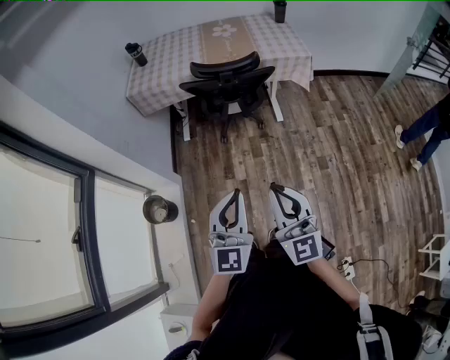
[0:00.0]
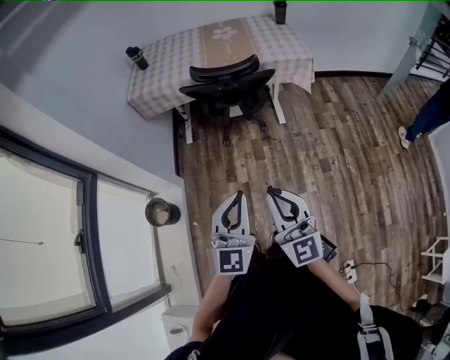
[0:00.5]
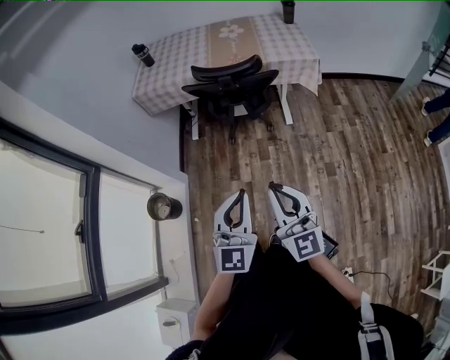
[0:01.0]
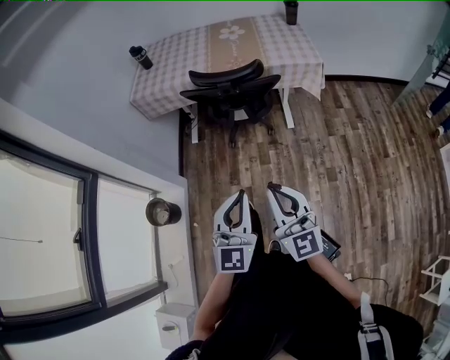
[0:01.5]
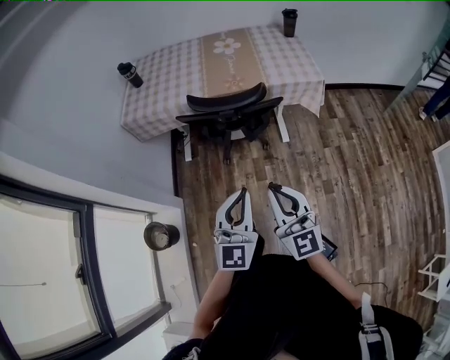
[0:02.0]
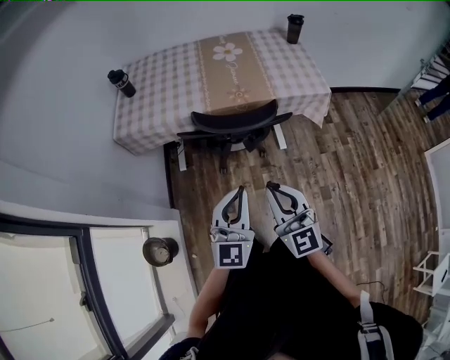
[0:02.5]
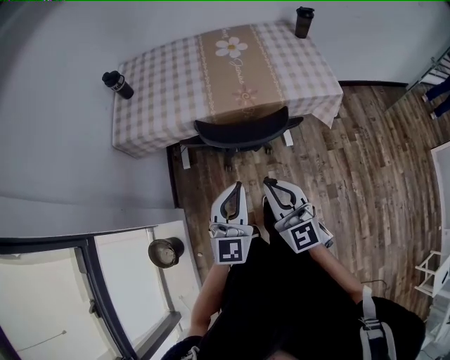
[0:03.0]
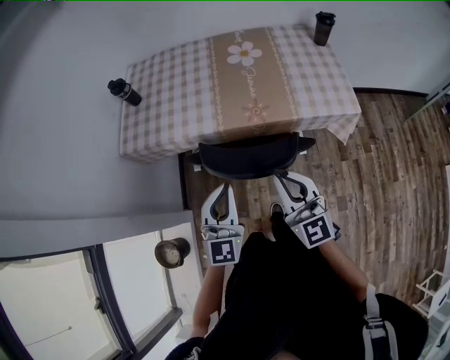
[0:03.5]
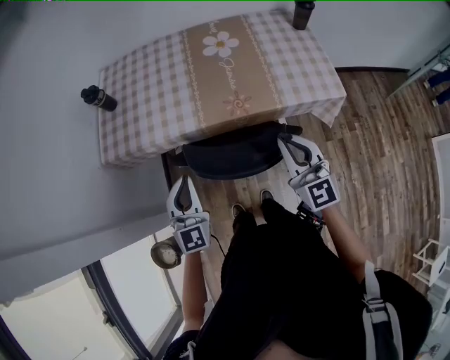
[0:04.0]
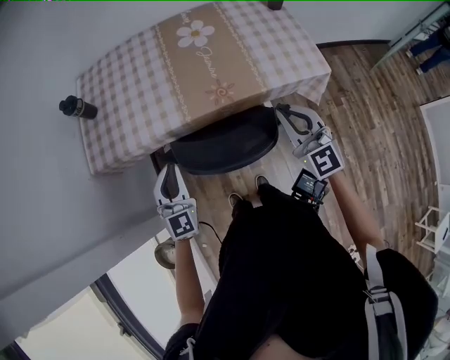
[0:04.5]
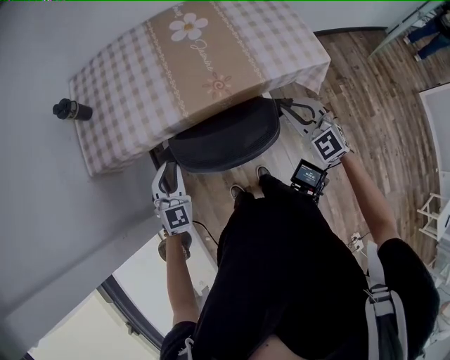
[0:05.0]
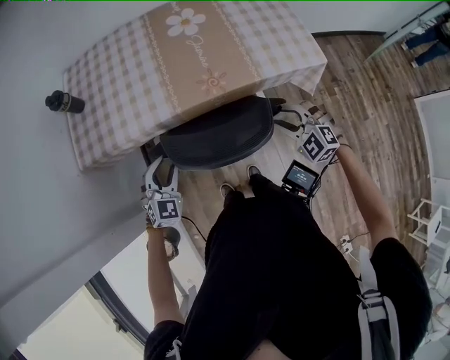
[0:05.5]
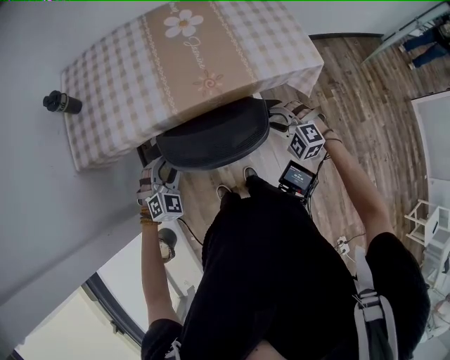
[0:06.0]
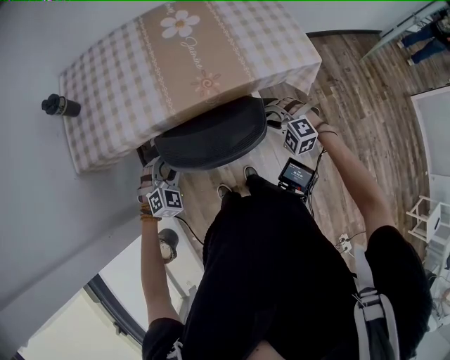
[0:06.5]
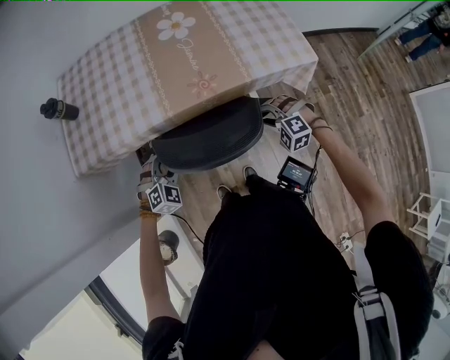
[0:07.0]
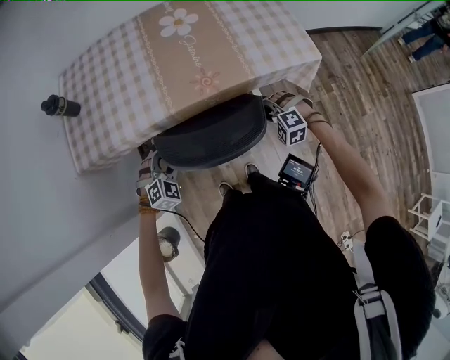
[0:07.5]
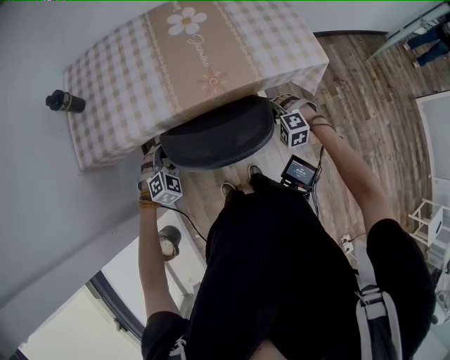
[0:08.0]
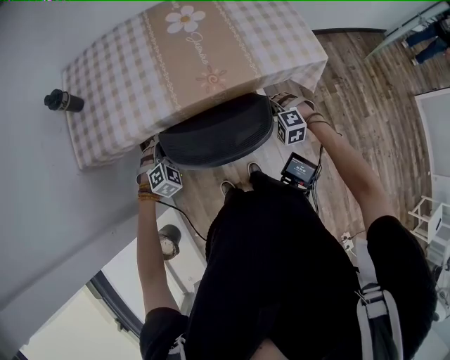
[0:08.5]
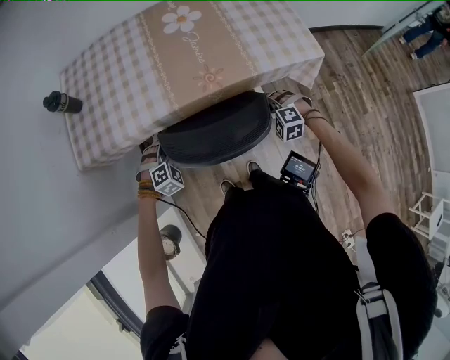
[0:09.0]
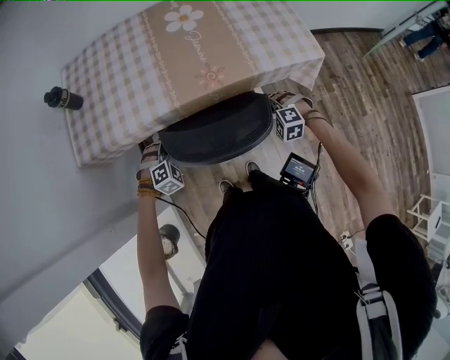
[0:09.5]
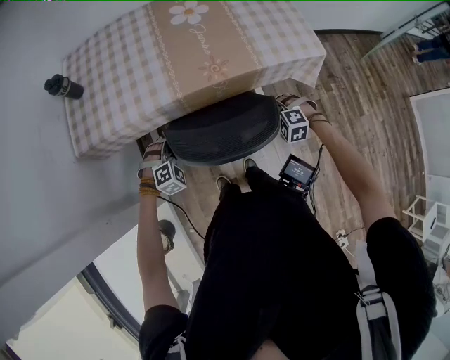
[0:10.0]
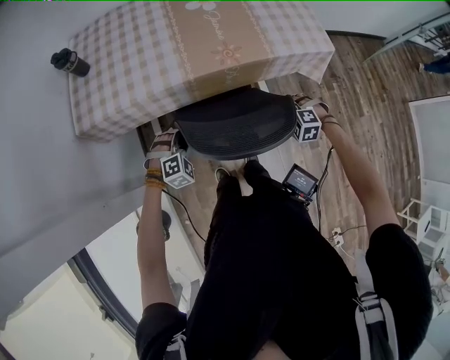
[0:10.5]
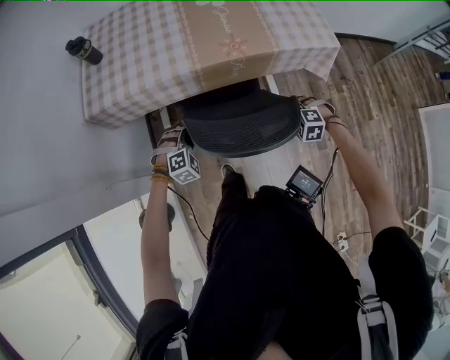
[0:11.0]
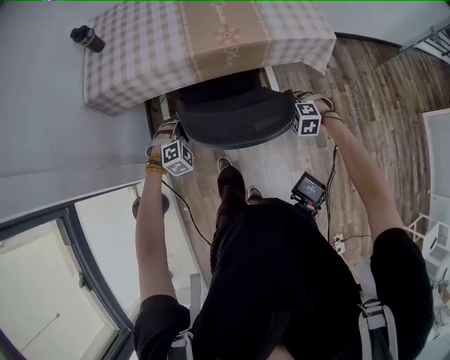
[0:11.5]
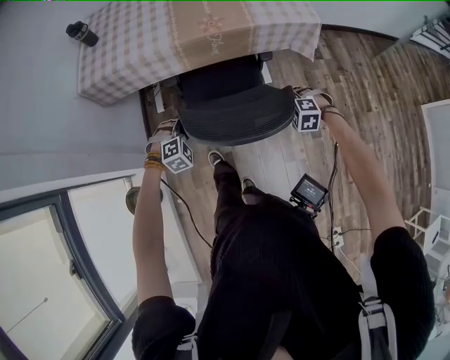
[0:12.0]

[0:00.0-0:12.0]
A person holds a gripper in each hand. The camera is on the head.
0:00.0 to 0:02.0: Both grippers move forward, about 20 cm.
0:02.0 to 0:04.0: Both grippers travel together forward, about 40 cm.
0:04.0 to 0:06.0: Both grippers move downward, about 20 cm. The right gripper angles its fingers downward, by approximately 40 degrees, and opens up. The left gripper angles its fingers downward, by some 30 degrees, and opens its fingers.
0:06.0 to 0:08.0: Both grippers travel together downward, approximately 5 cm.
0:08.0 to 0:10.0: The grippers make only small movements.
0:10.0 to 0:12.0: Both grippers move backward, roughly 20 cm.

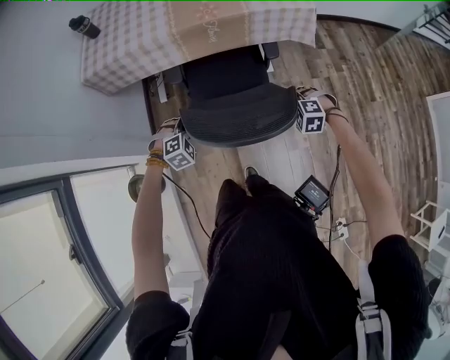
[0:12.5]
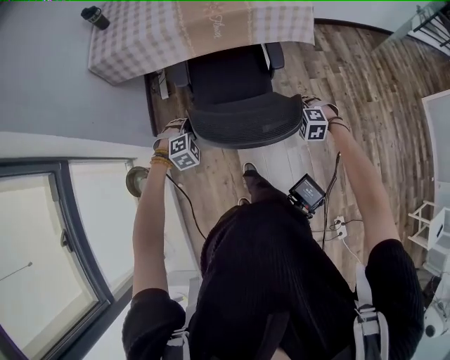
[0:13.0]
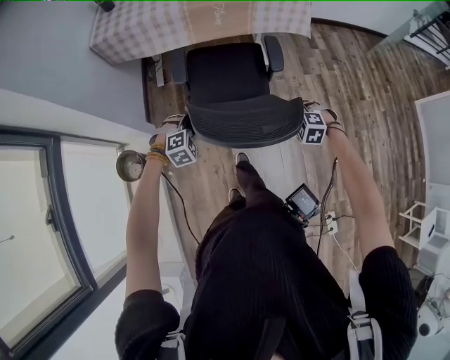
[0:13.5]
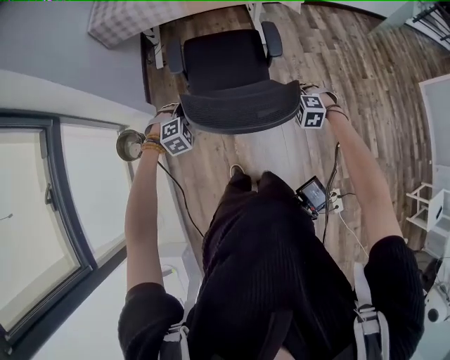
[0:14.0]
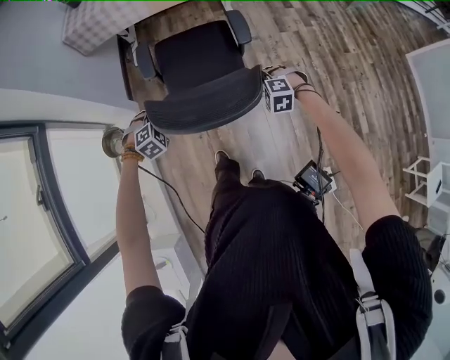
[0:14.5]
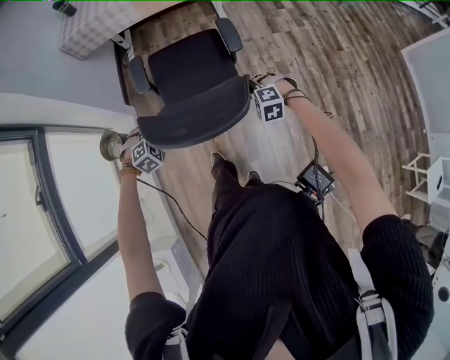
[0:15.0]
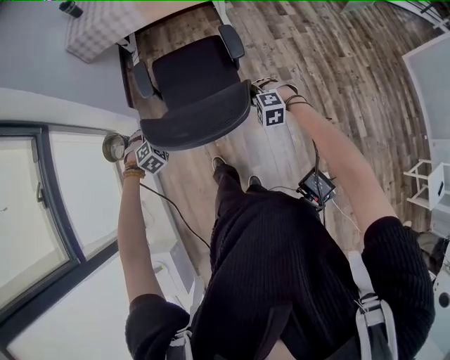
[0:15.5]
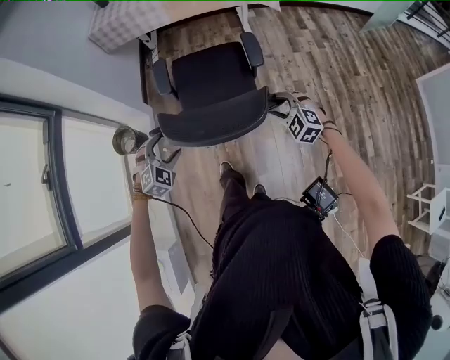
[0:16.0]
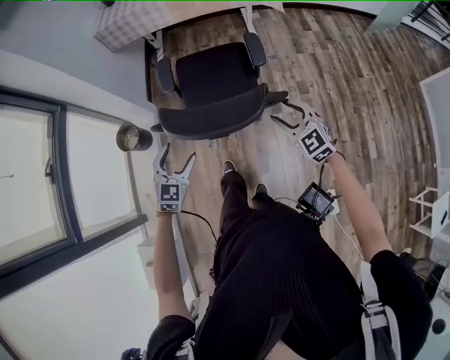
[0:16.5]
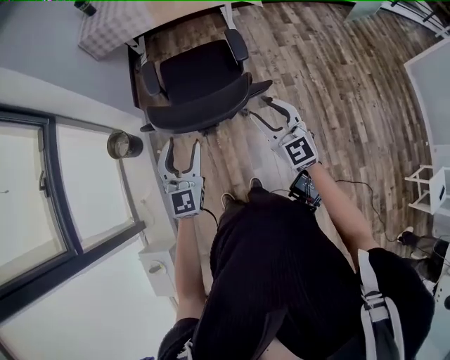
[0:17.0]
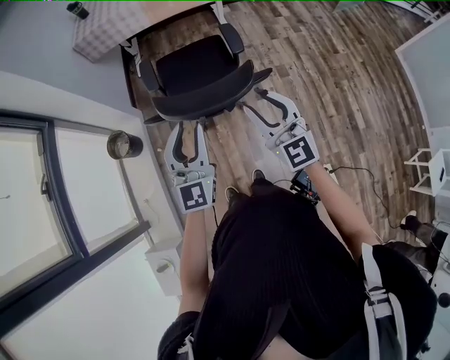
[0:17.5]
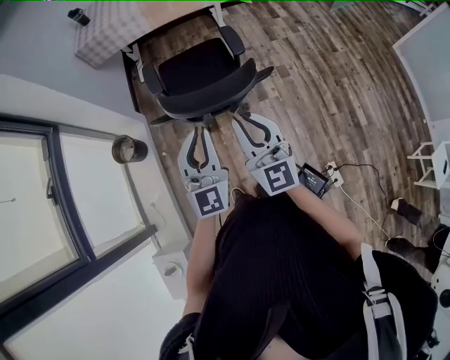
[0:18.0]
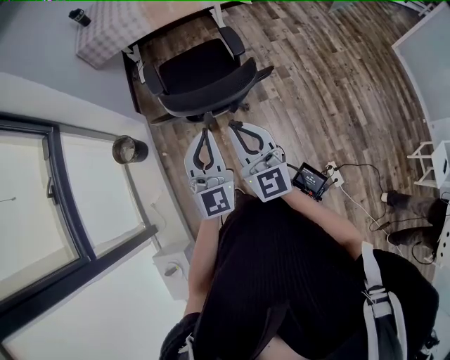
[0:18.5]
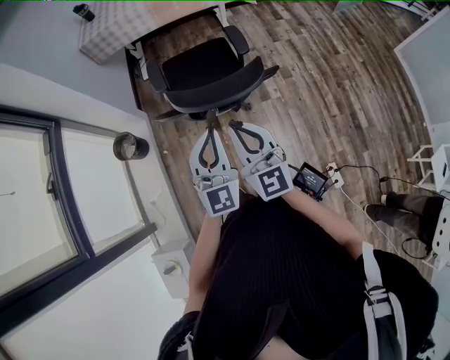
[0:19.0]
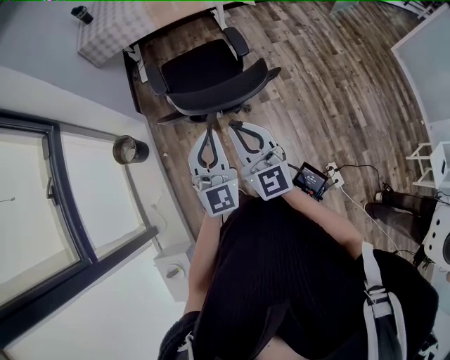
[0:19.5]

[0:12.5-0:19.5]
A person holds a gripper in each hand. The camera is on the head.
0:12.5 to 0:14.5: Both grippers move backward, some 30 cm.
0:14.5 to 0:16.0: Both grippers travel together backward and upward, roughly 10 cm. The right gripper changes its angle by roughly 30 degrees, and opens its fingers. The left gripper rotates roughly 20 degrees, and opens up.
0:16.0 to 0:17.5: The right gripper is displaced upward, backward and to the left by roughly 25 cm, and tips its fingers upward by some 40 degrees. The left gripper shifts some 25 cm upward, to the right and backward, tilts its fingers some 50 degrees upward, and closes up.
0:17.5 to 0:19.5: The left gripper closes up. The right gripper heads to the left, covering about 10 cm, and closes its fingers.

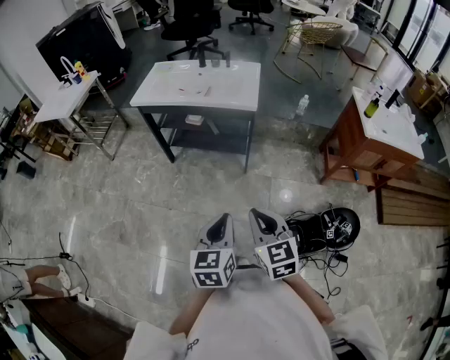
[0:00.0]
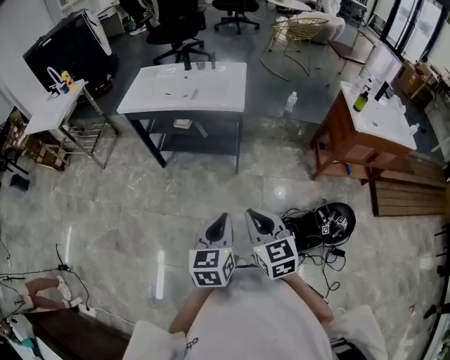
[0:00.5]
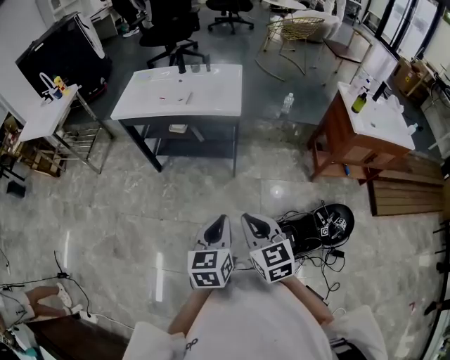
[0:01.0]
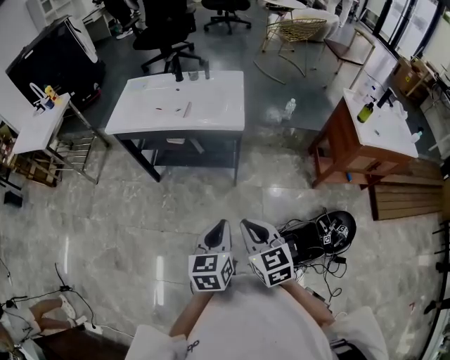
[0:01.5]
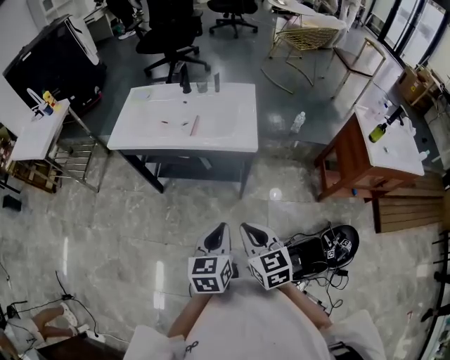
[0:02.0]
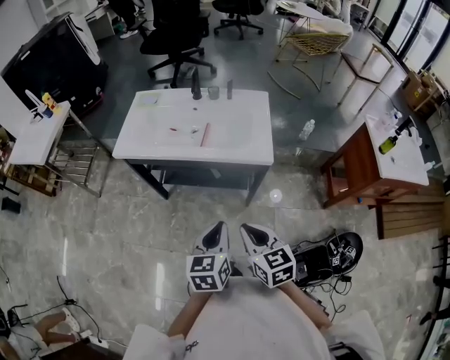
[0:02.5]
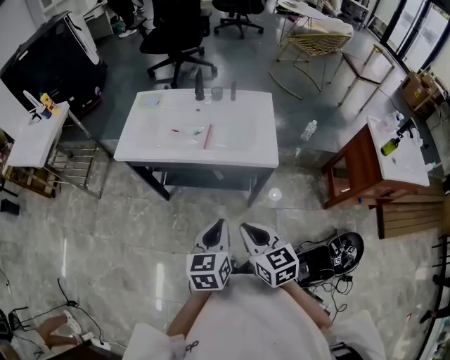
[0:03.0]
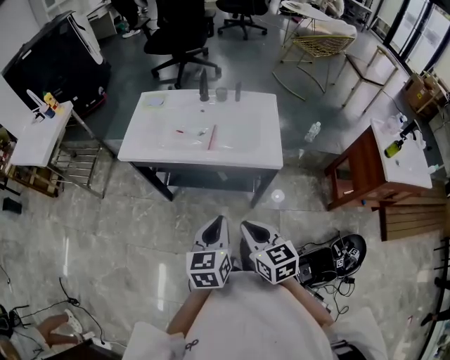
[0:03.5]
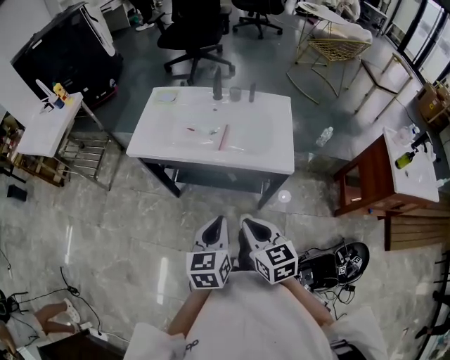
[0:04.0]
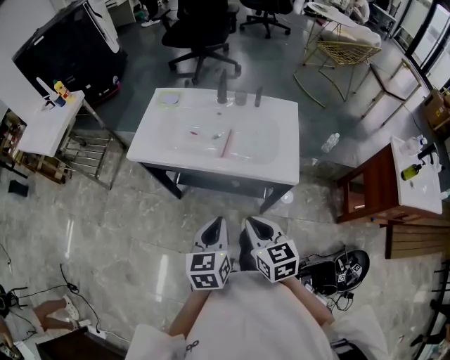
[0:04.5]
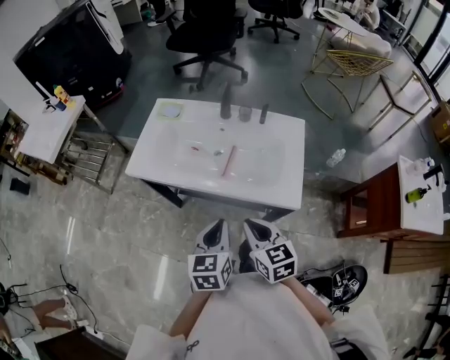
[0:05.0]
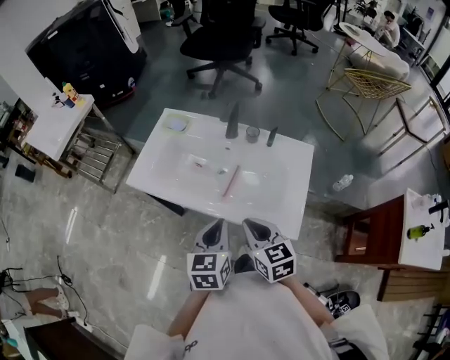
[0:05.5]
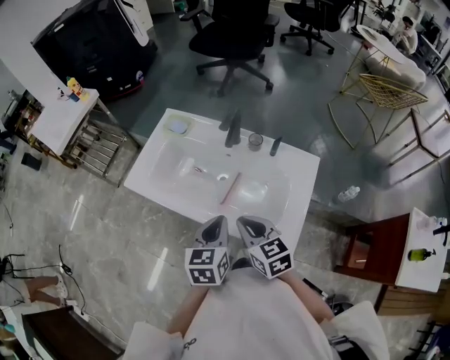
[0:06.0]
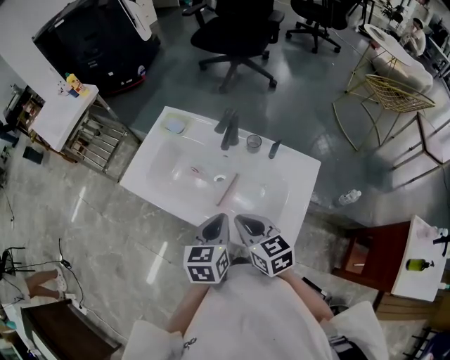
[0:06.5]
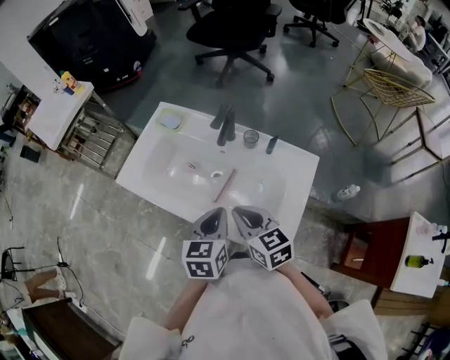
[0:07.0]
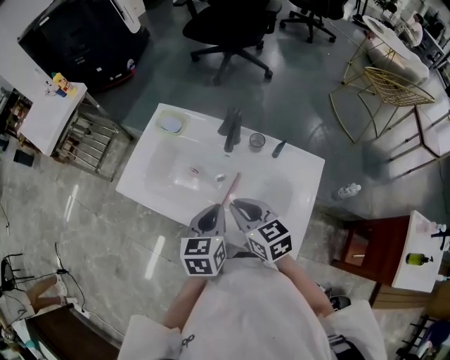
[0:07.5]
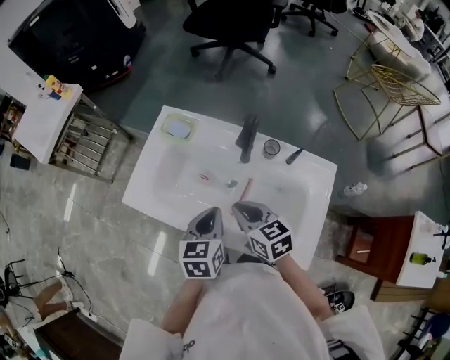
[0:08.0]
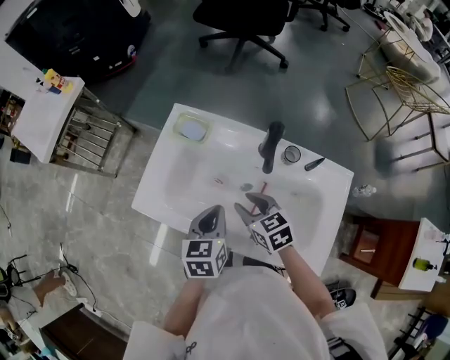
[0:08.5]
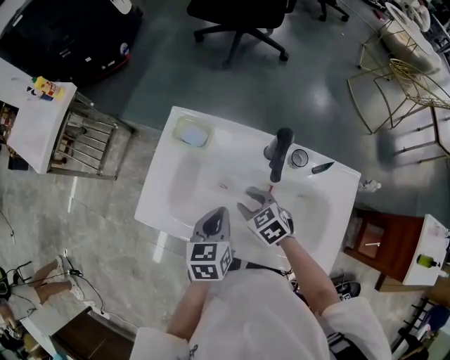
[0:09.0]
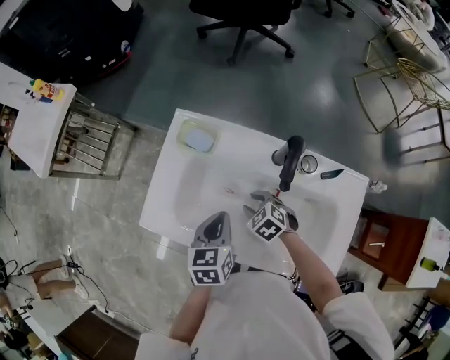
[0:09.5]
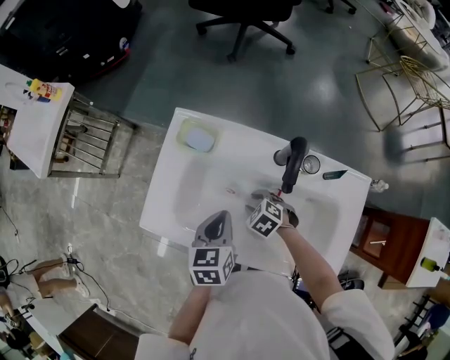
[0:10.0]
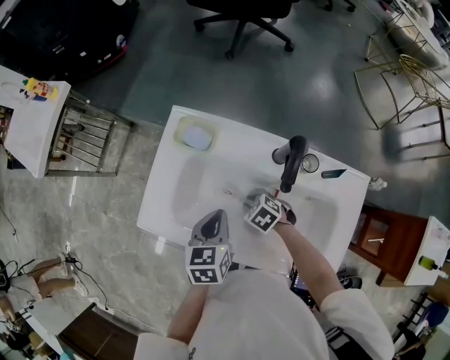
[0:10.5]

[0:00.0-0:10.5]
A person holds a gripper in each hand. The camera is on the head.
0:00.0 to 0:02.0: Both grippers travel together forward, about 25 cm.
0:02.0 to 0:04.0: The two grippers go about 15 cm forward and to the left.
0:04.0 to 0:06.5: The left gripper travels forward and to the right by approximately 30 cm. The right gripper is displaced forward by about 30 cm, and turns by about 20 degrees.
0:06.5 to 0:08.5: The left gripper shifts about 20 cm forward and to the left. The right gripper travels forward, to the left and downward by some 20 cm, and opens its fingers.
0:08.5 to 0:10.5: The left gripper heads forward, covering approximately 5 cm, while the right gripper travels downward by roughly 15 cm, and changes its angle by about 40 degrees.
